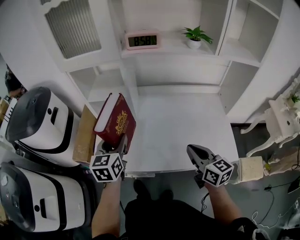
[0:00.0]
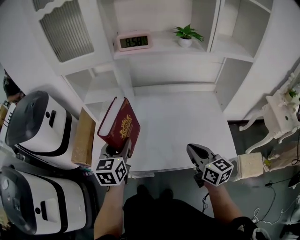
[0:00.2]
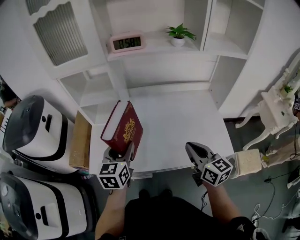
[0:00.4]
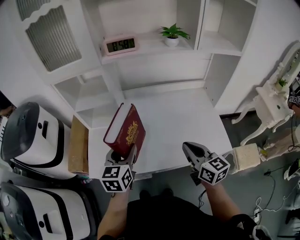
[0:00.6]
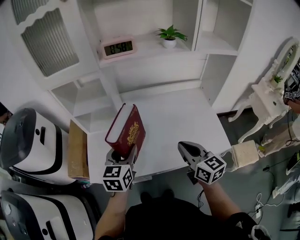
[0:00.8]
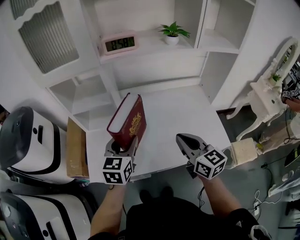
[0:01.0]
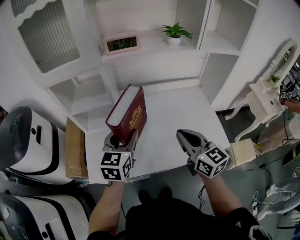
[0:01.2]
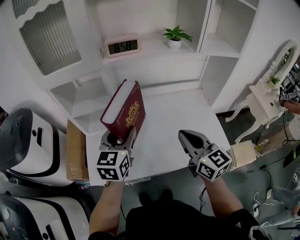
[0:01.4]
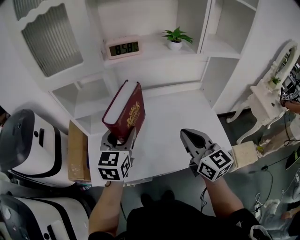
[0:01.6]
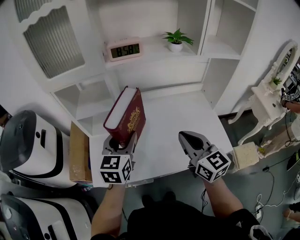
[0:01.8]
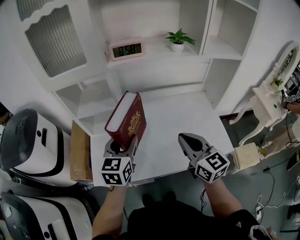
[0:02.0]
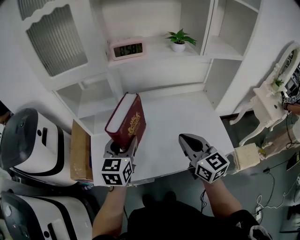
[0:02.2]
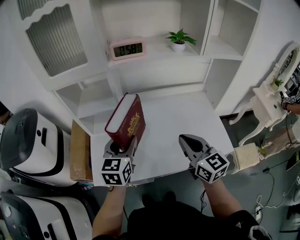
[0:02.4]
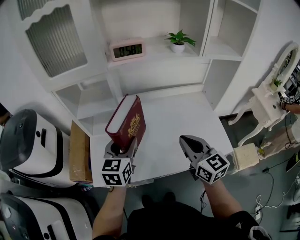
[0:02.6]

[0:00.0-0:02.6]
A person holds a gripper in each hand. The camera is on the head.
0.0 to 1.2 s: The right gripper is displaced upward by some 5 cm. Meanwhile the left gripper moves to the right, approximately 10 cm, and changes its angle by about 20 degrees.
1.2 to 2.6 s: The grippers move only a little.

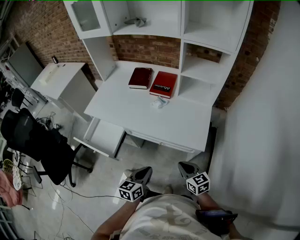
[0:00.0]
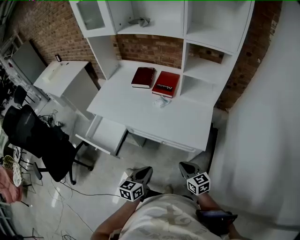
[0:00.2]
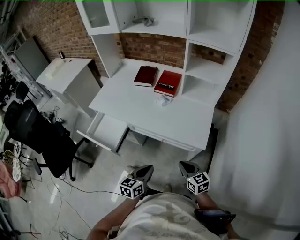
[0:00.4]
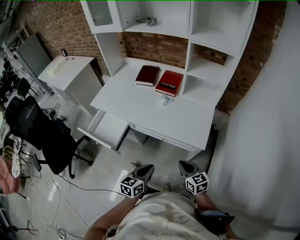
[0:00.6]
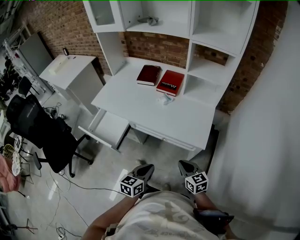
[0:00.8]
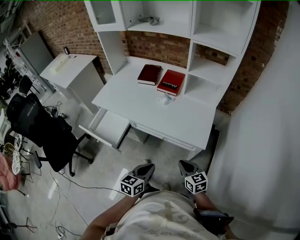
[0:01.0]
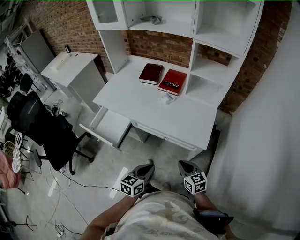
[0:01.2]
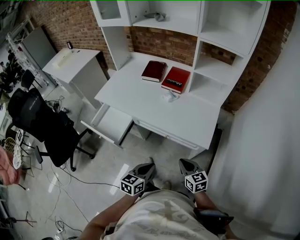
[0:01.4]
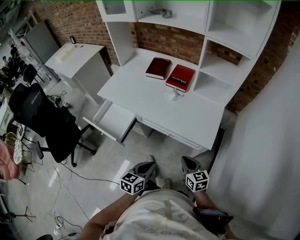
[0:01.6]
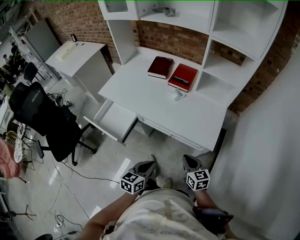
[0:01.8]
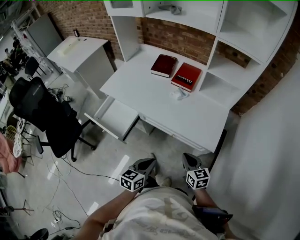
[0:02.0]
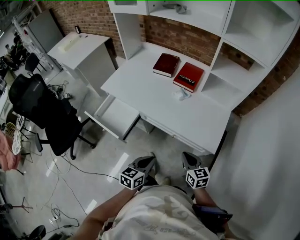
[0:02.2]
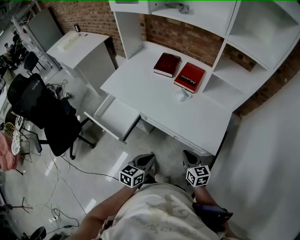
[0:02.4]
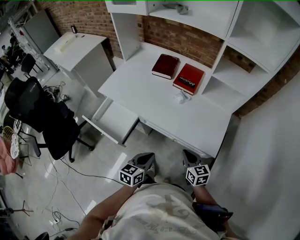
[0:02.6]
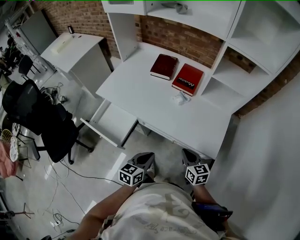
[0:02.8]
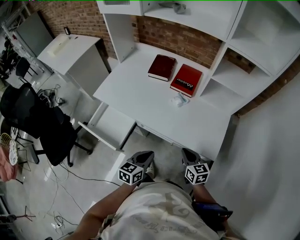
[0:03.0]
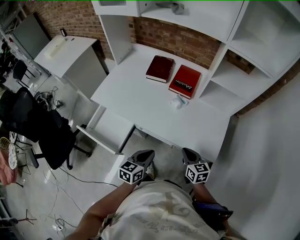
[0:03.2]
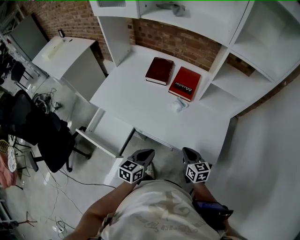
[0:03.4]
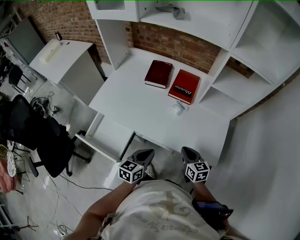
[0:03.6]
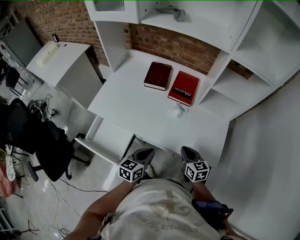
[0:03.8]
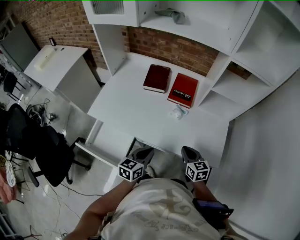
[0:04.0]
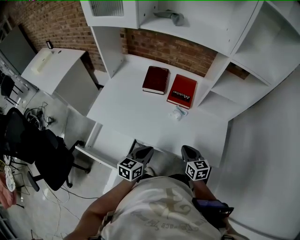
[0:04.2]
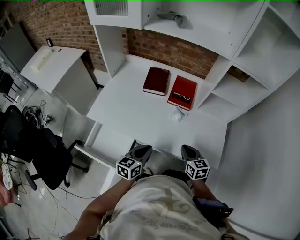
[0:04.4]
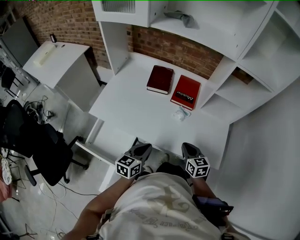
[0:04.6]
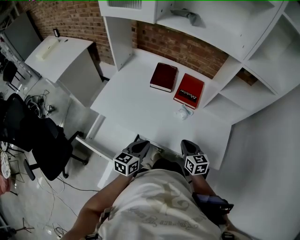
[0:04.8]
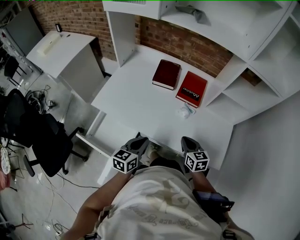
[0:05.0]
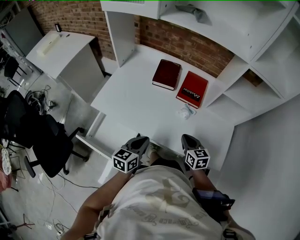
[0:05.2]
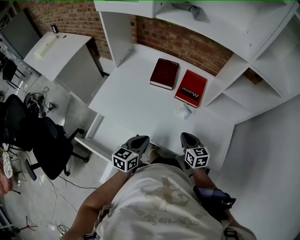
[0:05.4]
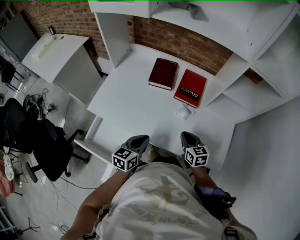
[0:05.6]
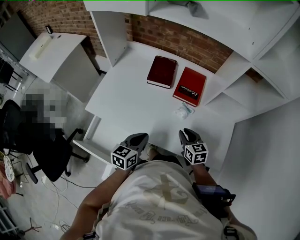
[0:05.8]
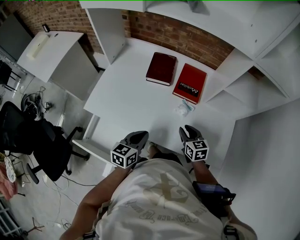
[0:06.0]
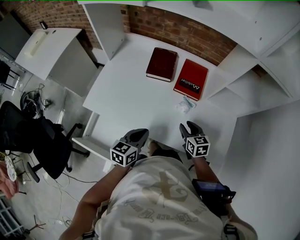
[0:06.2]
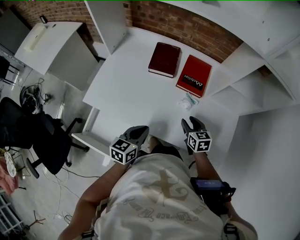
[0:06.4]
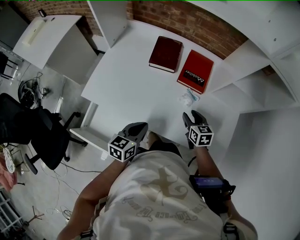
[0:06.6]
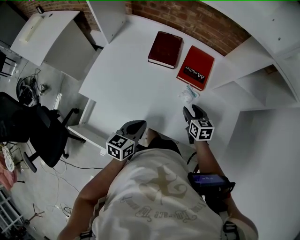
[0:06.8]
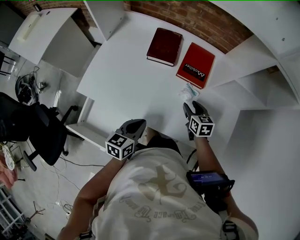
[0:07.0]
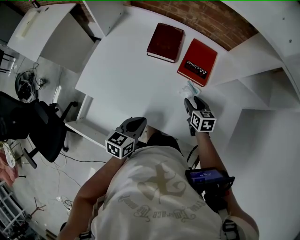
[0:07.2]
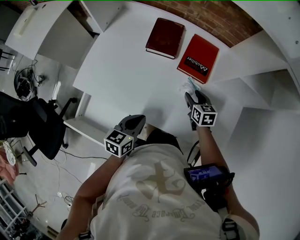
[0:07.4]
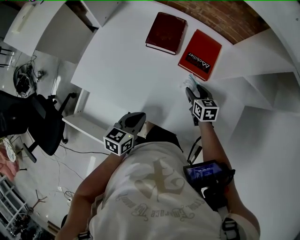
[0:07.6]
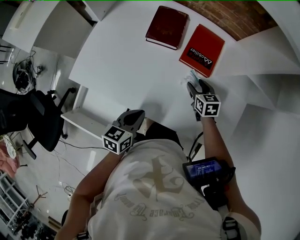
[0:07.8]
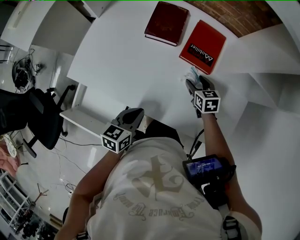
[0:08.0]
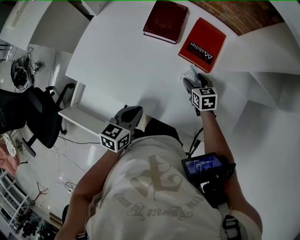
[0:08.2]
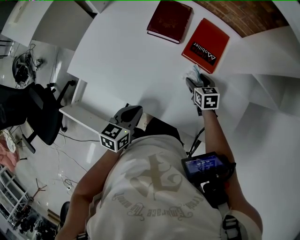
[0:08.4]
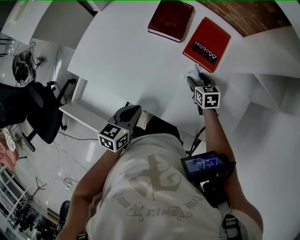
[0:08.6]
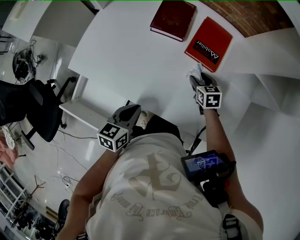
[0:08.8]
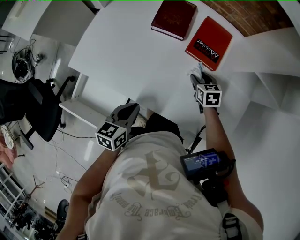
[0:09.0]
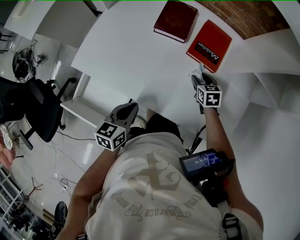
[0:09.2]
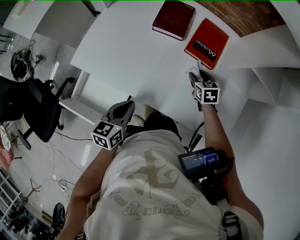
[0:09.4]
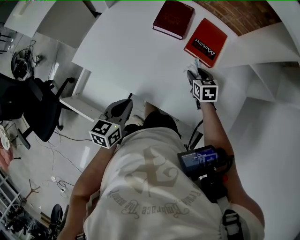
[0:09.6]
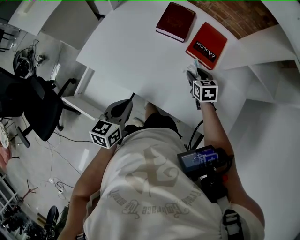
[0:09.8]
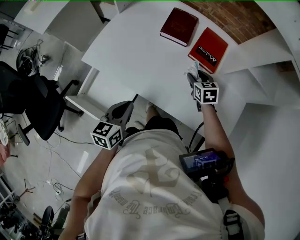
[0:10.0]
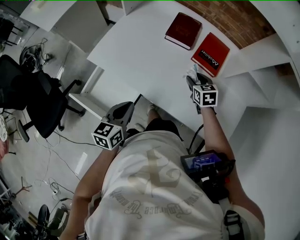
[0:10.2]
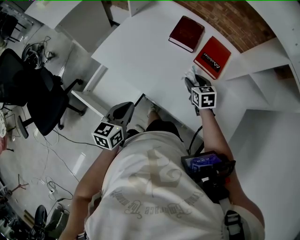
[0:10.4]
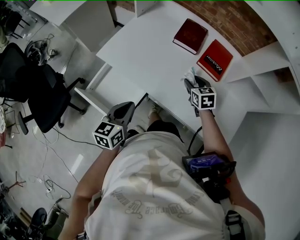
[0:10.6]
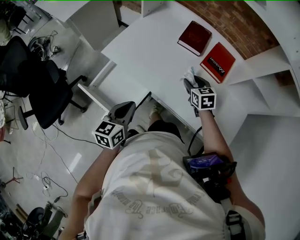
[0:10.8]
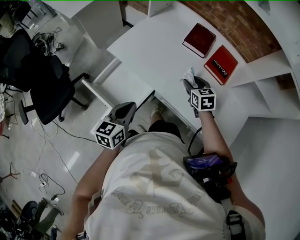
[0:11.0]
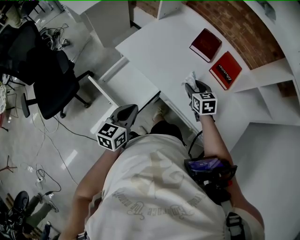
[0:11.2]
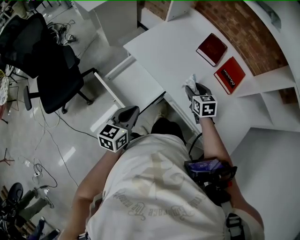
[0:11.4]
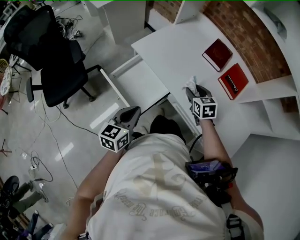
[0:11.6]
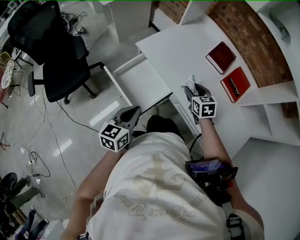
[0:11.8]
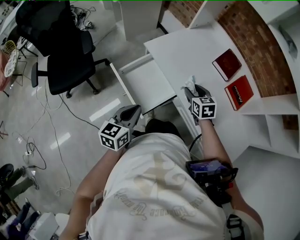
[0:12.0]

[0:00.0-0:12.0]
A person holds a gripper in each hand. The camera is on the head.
0.0 to 1.6 s: The grippers move only a little.
1.6 to 3.0 s: The grippers both shift forward and to the left by some 15 cm.
3.0 to 4.4 s: Both grippers move forward and to the left, about 15 cm.
4.4 to 6.0 s: Both grippers travel together forward, about 10 cm.
6.0 to 7.6 s: The right gripper is displaced forward and downward by some 15 cm, and opens.
7.6 to 9.0 s: The grippers move only a little.
9.0 to 10.4 s: The right gripper moves to the left and upward, about 15 cm; the left gripper moves to the left, backward and upward, roughly 10 cm.
10.4 to 12.0 s: The left gripper goes roughly 15 cm to the left and backward, while the right gripper travels to the left by roughly 20 cm, and turns by some 20 degrees.

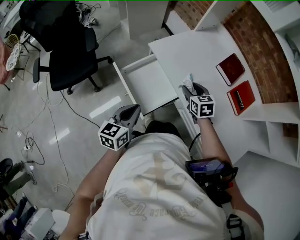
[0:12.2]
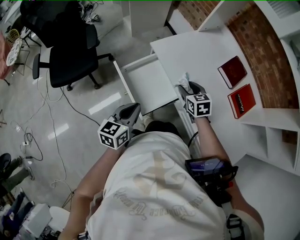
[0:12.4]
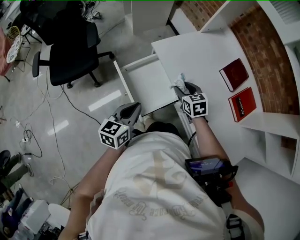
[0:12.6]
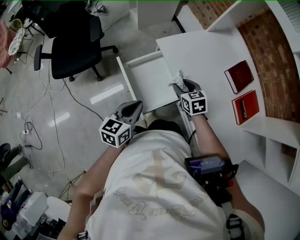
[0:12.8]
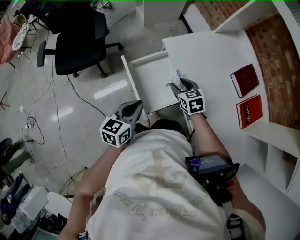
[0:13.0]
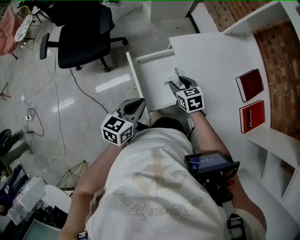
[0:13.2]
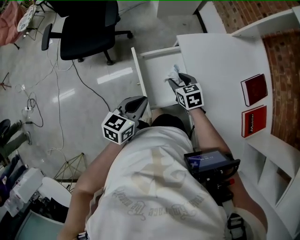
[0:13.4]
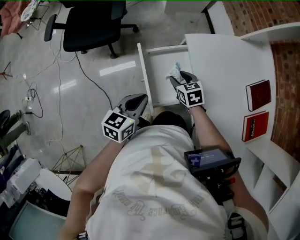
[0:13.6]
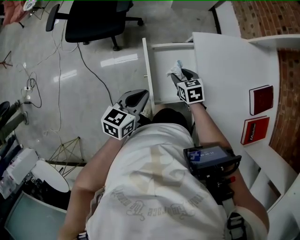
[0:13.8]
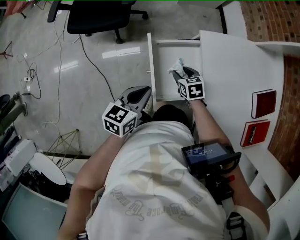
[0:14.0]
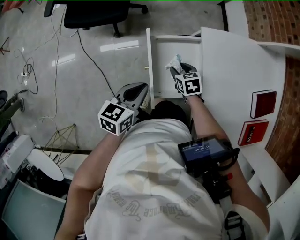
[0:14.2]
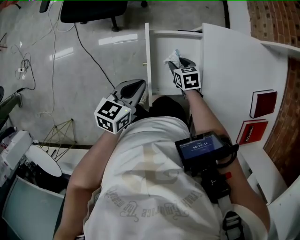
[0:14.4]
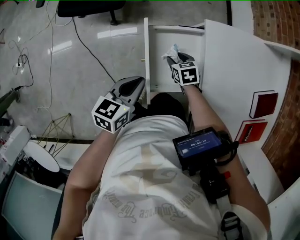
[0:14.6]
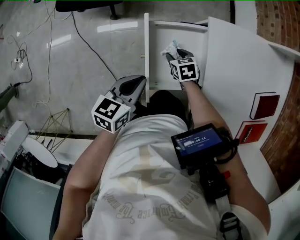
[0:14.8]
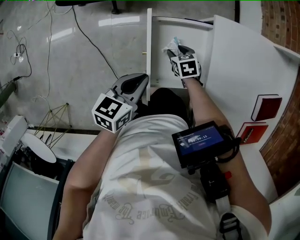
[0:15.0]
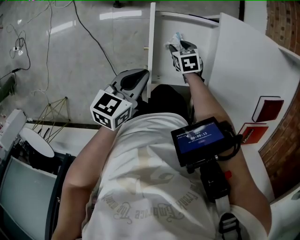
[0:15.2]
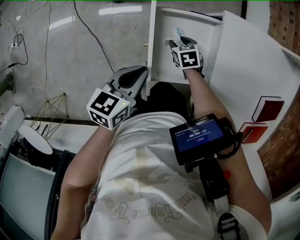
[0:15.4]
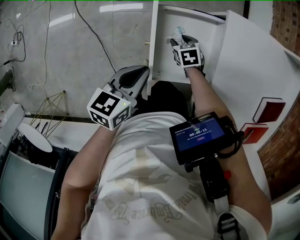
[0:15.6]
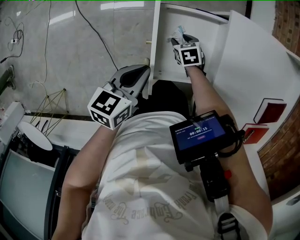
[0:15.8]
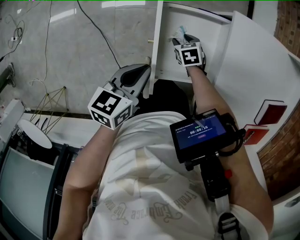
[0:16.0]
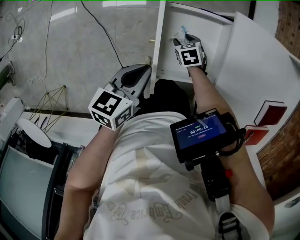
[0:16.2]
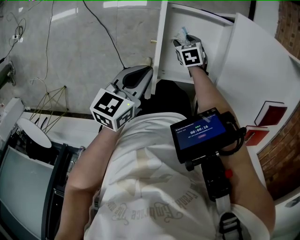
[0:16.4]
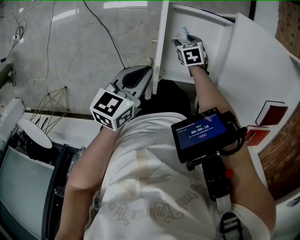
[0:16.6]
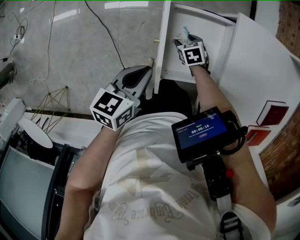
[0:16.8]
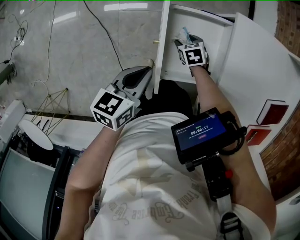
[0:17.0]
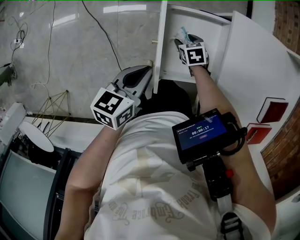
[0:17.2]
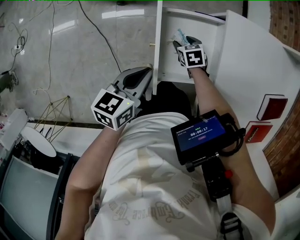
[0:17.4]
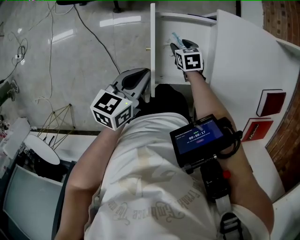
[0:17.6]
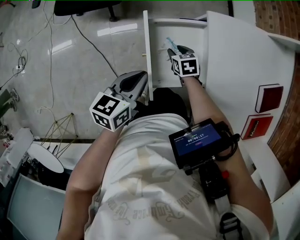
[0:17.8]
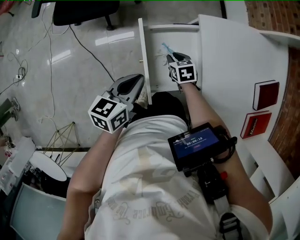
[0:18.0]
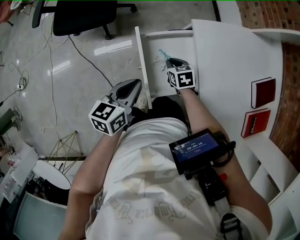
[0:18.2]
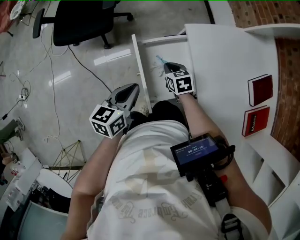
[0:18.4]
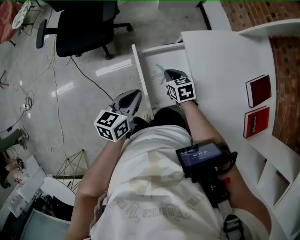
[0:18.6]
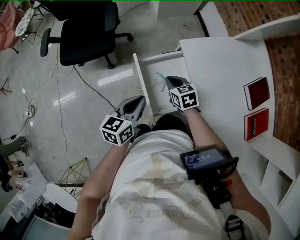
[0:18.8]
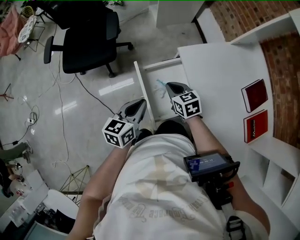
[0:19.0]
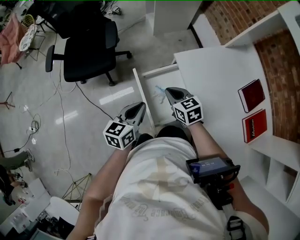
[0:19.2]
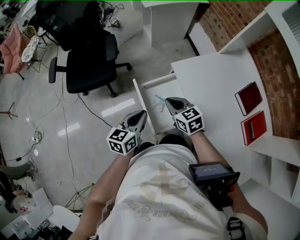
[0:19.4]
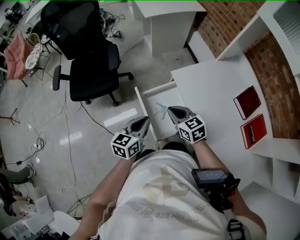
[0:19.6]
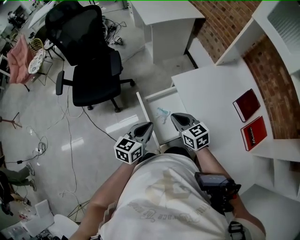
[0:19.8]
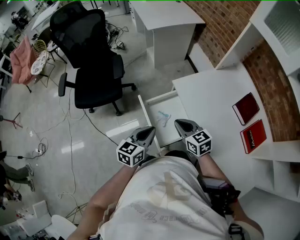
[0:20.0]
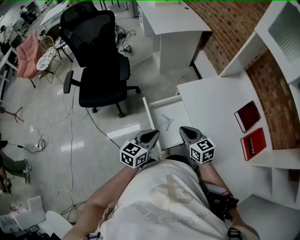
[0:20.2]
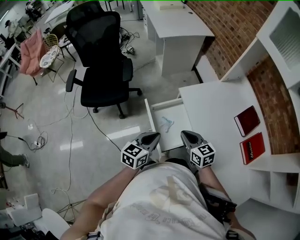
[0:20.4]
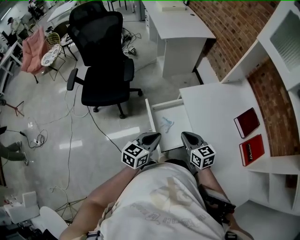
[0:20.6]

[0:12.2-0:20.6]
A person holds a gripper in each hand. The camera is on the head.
12.2 to 13.6 s: The right gripper heads to the left and downward, covering roughly 20 cm, and rotates roughly 30 degrees. The left gripper is displaced forward by some 5 cm.
13.6 to 15.0 s: The right gripper shifts some 15 cm downward; the left gripper goes about 5 cm downward.
15.0 to 16.4 s: The right gripper is displaced downward by some 5 cm.
16.4 to 17.8 s: The right gripper is displaced upward by about 10 cm.
17.8 to 19.2 s: The right gripper heads upward, covering about 20 cm, changes its angle by some 20 degrees, and closes, while the left gripper shifts approximately 5 cm upward.
19.2 to 20.6 s: The left gripper shifts some 5 cm backward, while the right gripper goes approximately 15 cm backward, upward and to the right.

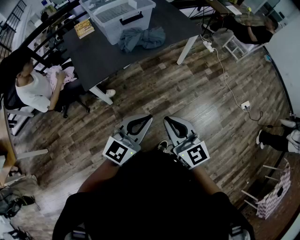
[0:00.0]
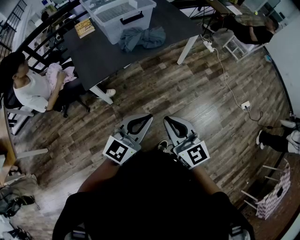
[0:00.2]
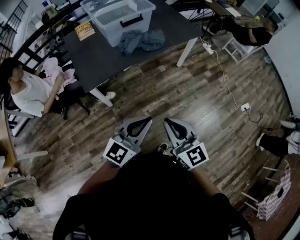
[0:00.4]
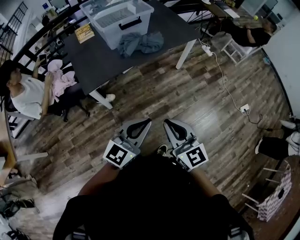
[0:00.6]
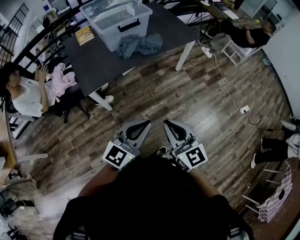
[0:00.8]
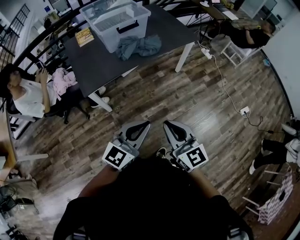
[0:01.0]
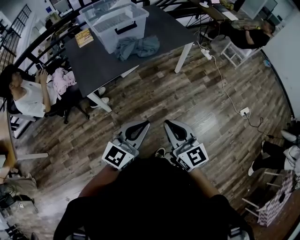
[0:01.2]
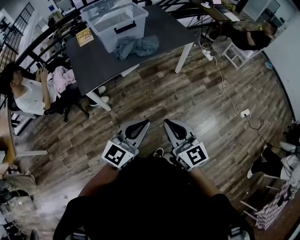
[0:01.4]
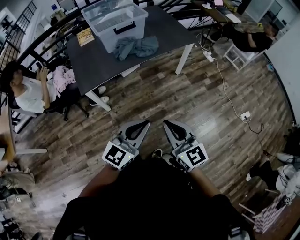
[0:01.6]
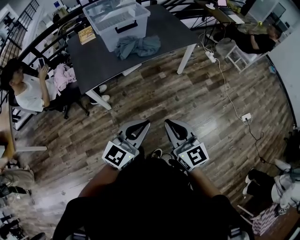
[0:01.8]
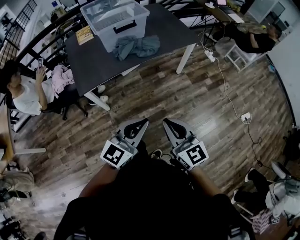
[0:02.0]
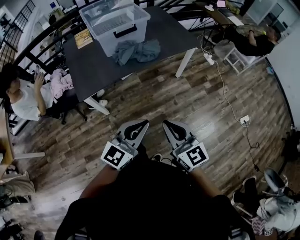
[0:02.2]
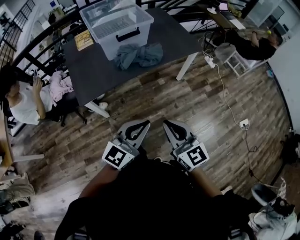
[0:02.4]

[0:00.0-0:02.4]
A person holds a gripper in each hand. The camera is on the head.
0.0 to 1.2 s: The left gripper ends up some 5 cm from where it was; the right gripper moves to the right, roughly 5 cm.
1.2 to 2.4 s: Both grippers travel together forward, roughly 10 cm.
